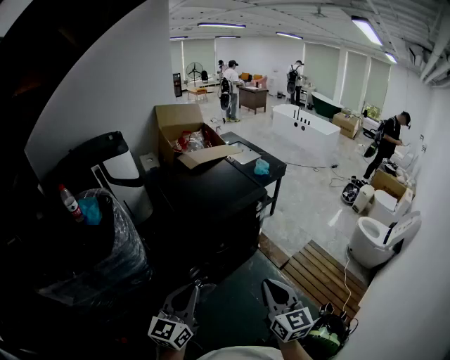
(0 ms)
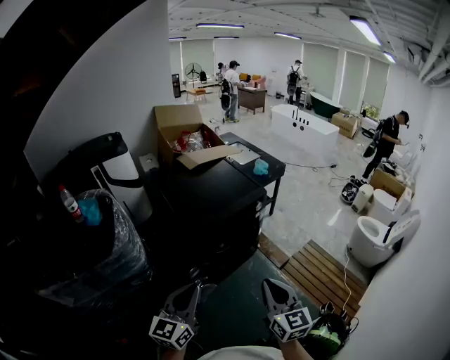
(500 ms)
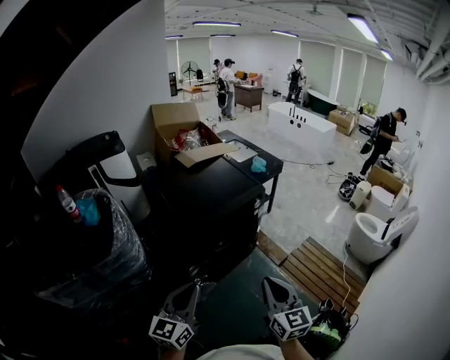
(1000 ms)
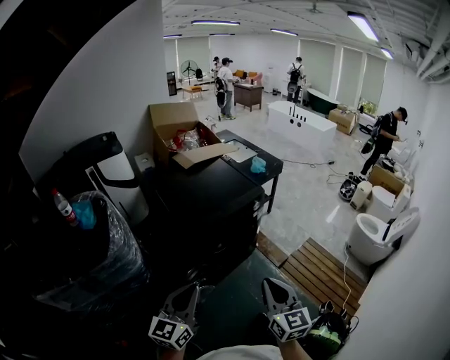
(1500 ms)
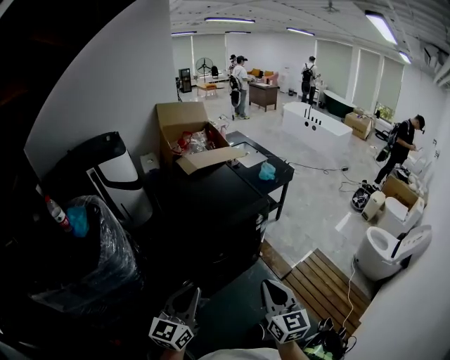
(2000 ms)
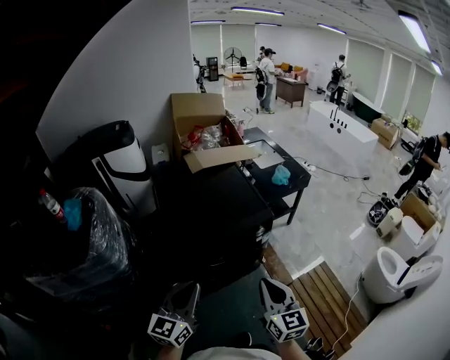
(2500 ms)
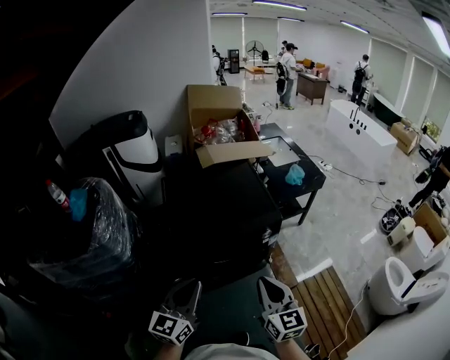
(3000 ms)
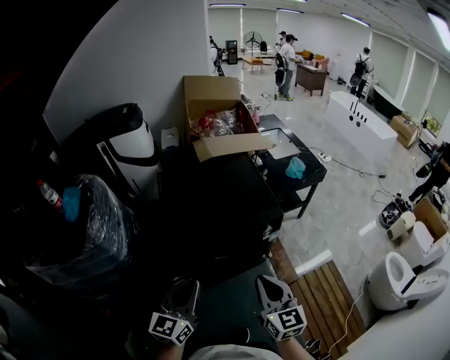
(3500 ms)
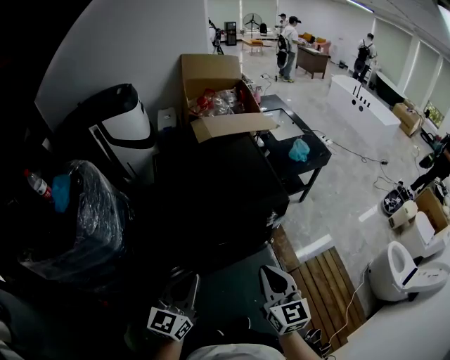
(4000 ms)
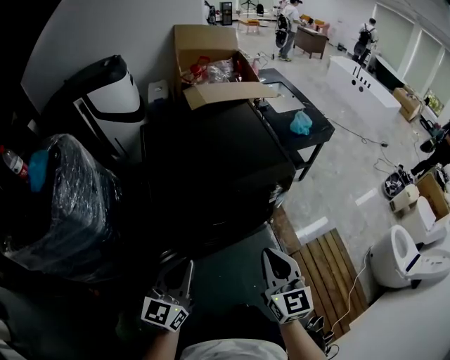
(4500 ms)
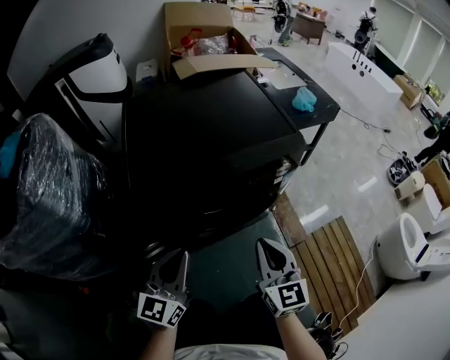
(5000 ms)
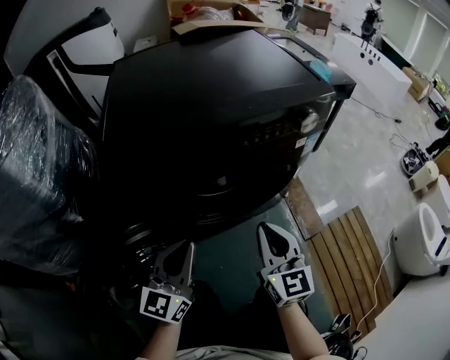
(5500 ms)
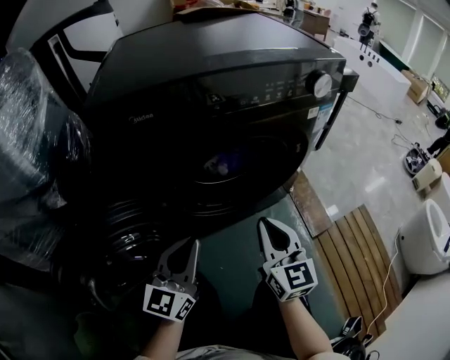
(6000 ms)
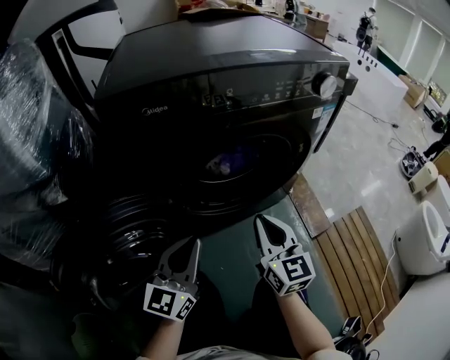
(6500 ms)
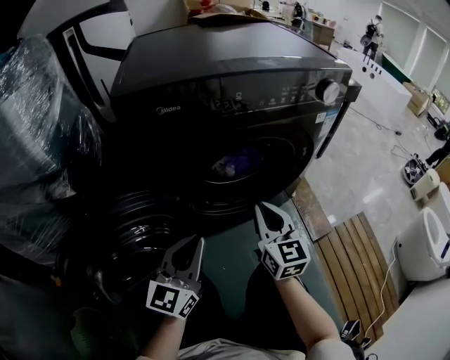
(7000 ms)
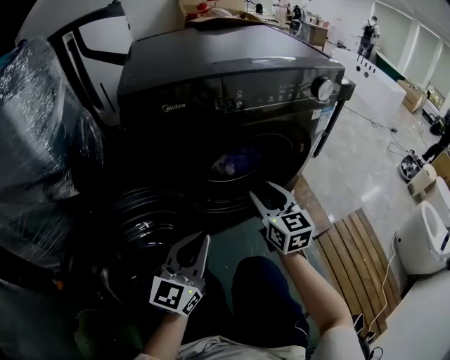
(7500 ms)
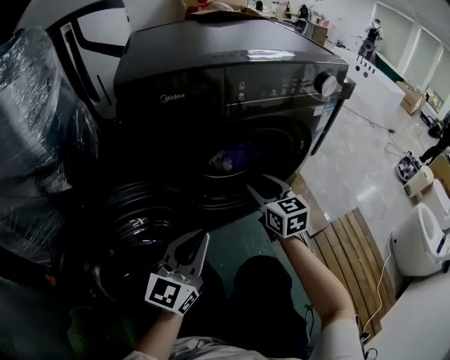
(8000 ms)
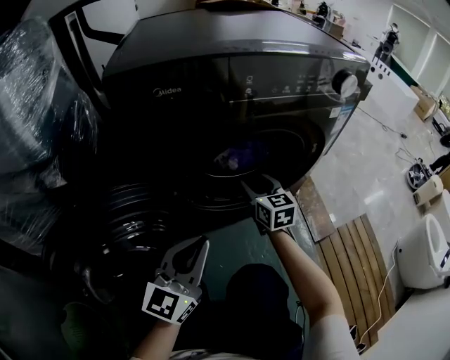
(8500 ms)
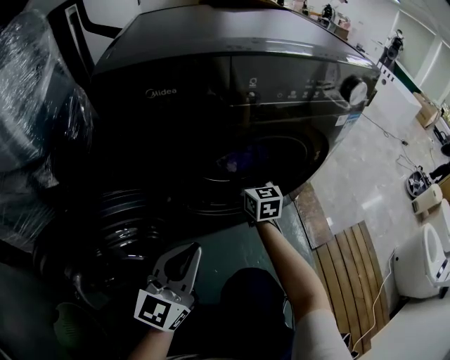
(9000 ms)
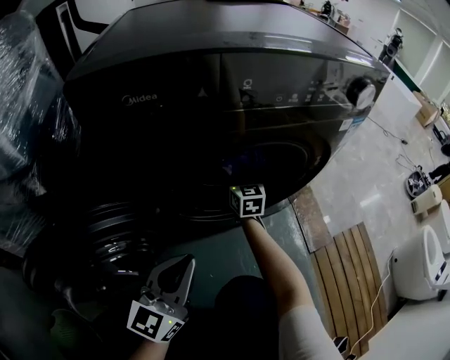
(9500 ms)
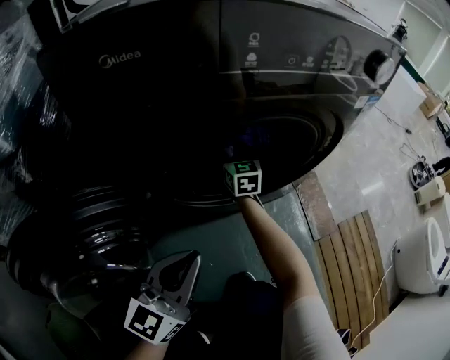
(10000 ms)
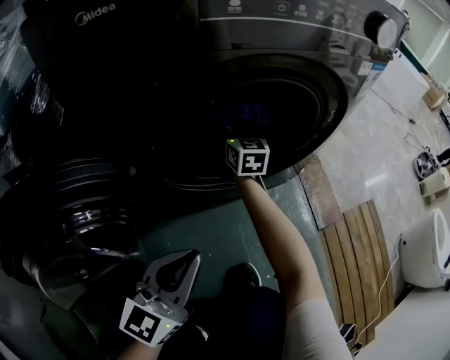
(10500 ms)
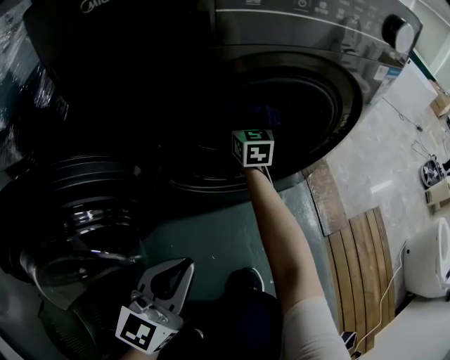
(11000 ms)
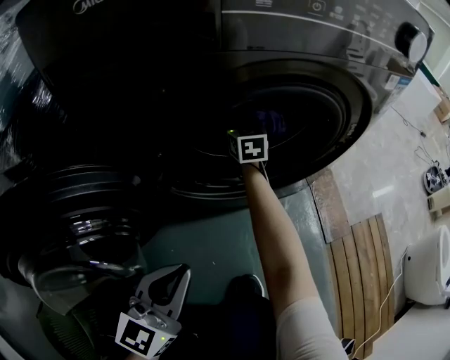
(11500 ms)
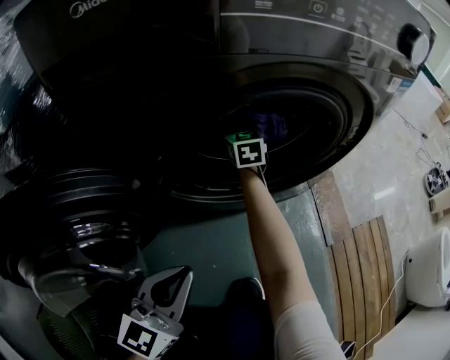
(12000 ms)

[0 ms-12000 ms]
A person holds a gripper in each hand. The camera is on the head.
0 ms to 2000 ms: The right gripper heads forward, covering some 10 cm; the left gripper shifts roughly 10 cm forward and to the right.
2000 ms to 4000 ms: The right gripper travels forward by some 20 cm, while the left gripper travels forward, to the right and downward by some 20 cm.
4000 ms to 6000 ms: The two grippers go approximately 50 cm downward.
6000 ms to 8000 ms: The right gripper heads forward, covering some 10 cm, and opens up.
8000 ms to 10000 ms: The right gripper is displaced forward and downward by some 25 cm. The left gripper travels downward by approximately 5 cm.
10000 ms to 12000 ms: The left gripper heads downward, covering roughly 5 cm. The right gripper shifts about 5 cm forward, and closes up.

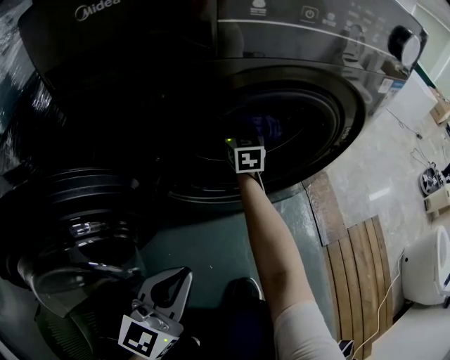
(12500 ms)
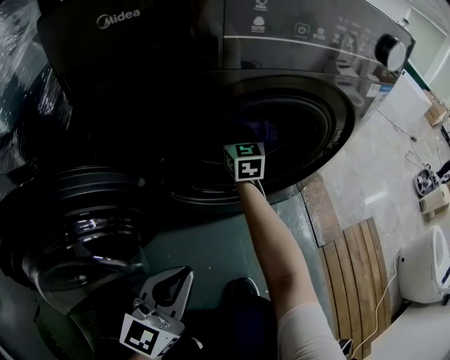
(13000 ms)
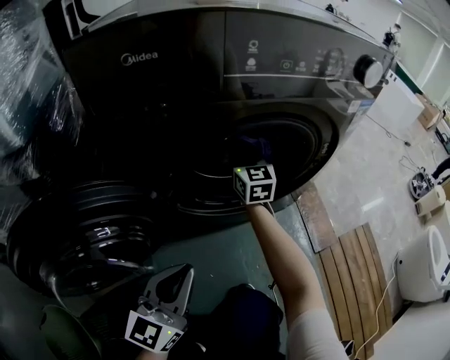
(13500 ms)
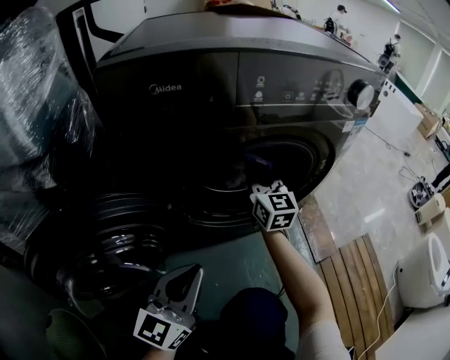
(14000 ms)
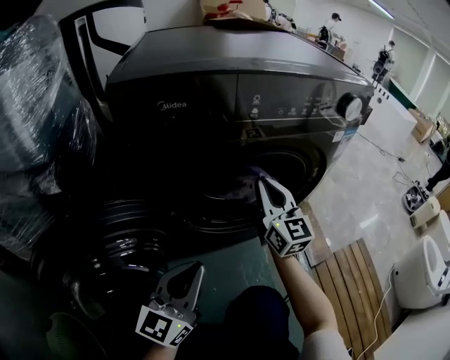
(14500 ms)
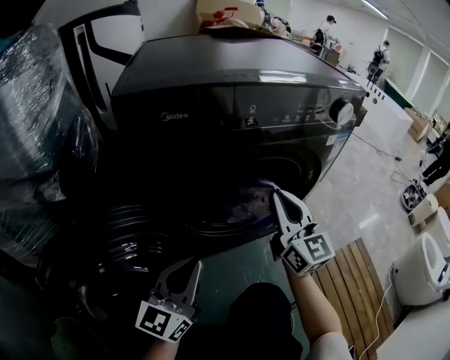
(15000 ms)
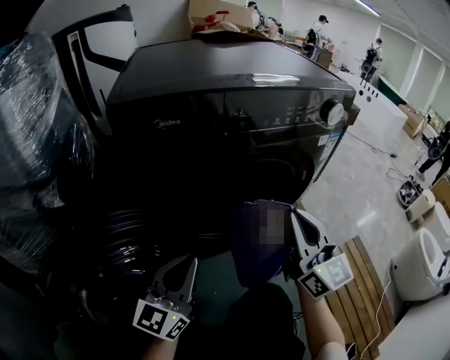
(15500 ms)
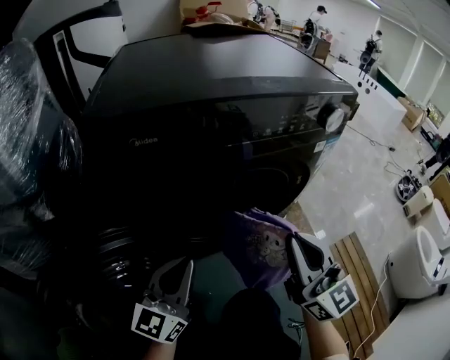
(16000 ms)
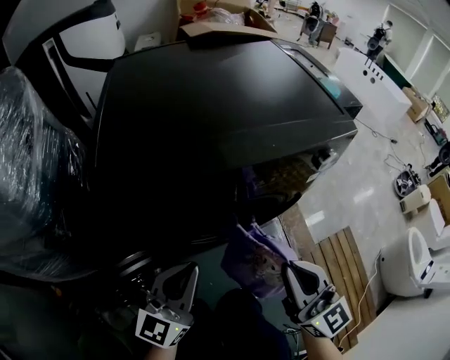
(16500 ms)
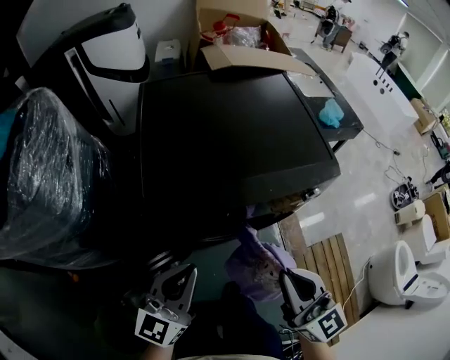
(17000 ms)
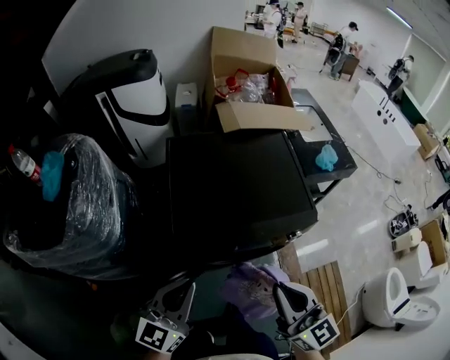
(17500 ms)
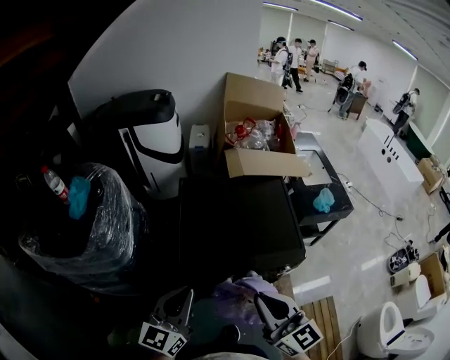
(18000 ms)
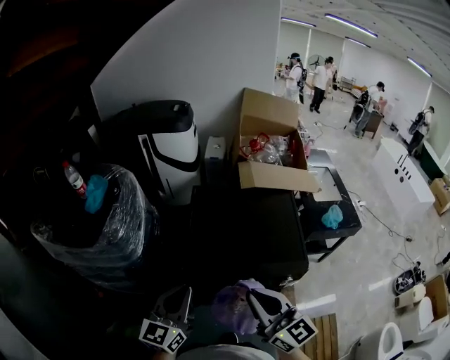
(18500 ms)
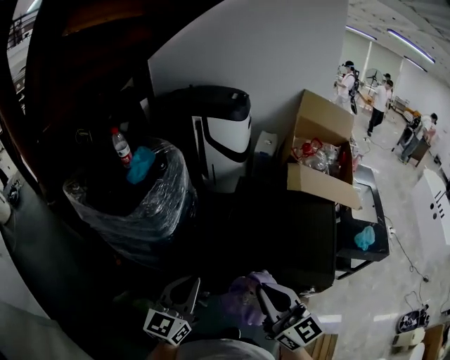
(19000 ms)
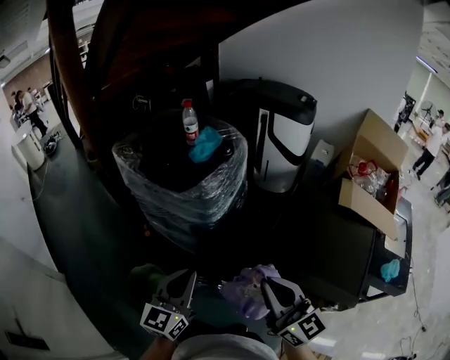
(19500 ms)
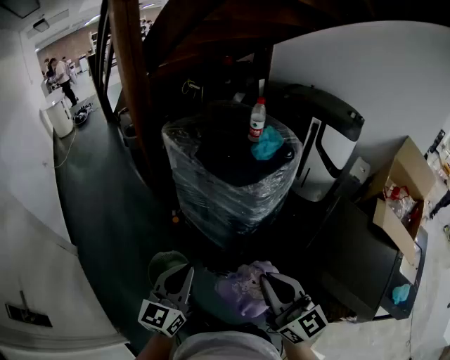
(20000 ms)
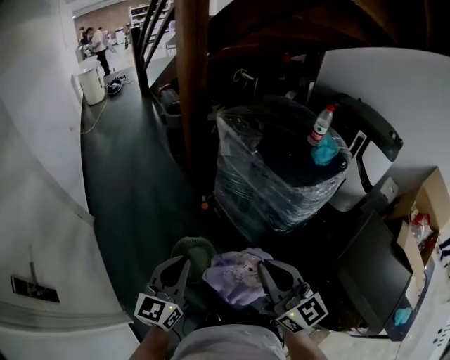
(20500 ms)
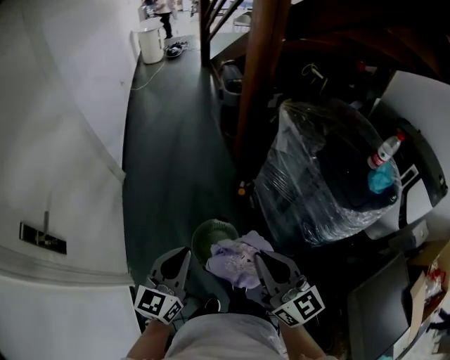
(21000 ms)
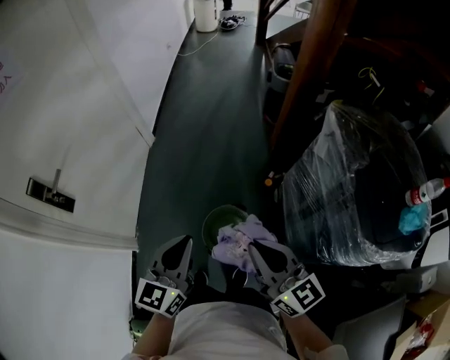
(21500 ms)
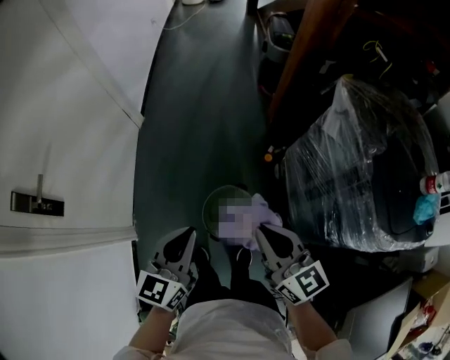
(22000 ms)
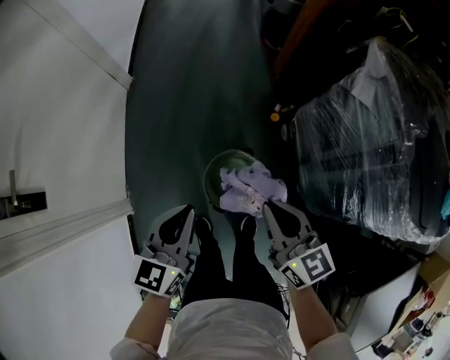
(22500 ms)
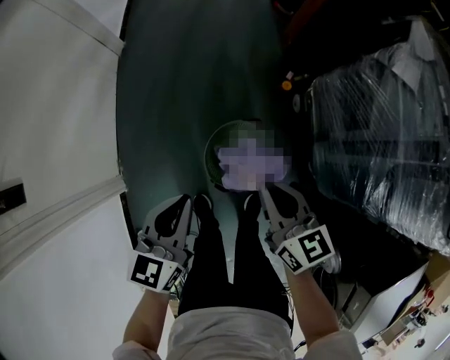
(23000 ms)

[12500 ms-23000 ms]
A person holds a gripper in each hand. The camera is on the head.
12500 ms to 14500 ms: The left gripper is displaced upward by approximately 10 cm. Meanwhile the right gripper goes some 30 cm backward, upward and to the right, and rotates about 20 degrees.
14500 ms to 16500 ms: The right gripper shifts roughly 25 cm upward, backward and to the right, while the left gripper travels upward by roughly 15 cm.
16500 ms to 19000 ms: Both grippers move upward, approximately 40 cm. The right gripper rotates some 40 degrees. Meanwhile the left gripper changes its angle by roughly 40 degrees.
19000 ms to 21000 ms: The pair of grippers is taken about 60 cm. The left gripper rotates approximately 60 degrees. The right gripper turns by approximately 60 degrees.
21000 ms to 23000 ms: The left gripper travels downward by some 30 cm, and swivels some 20 degrees, while the right gripper shifts roughly 40 cm downward and forward, and changes its angle by roughly 30 degrees.

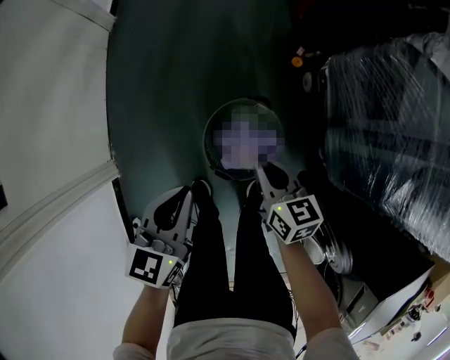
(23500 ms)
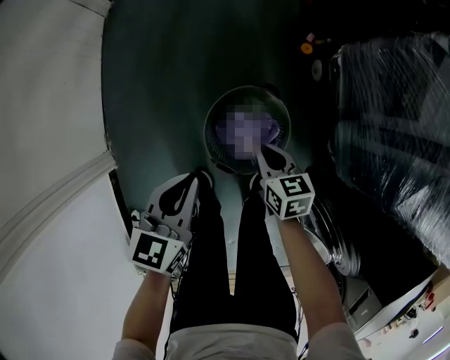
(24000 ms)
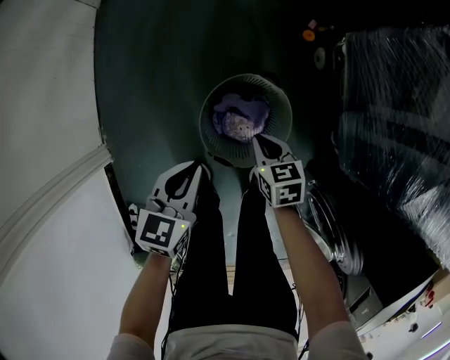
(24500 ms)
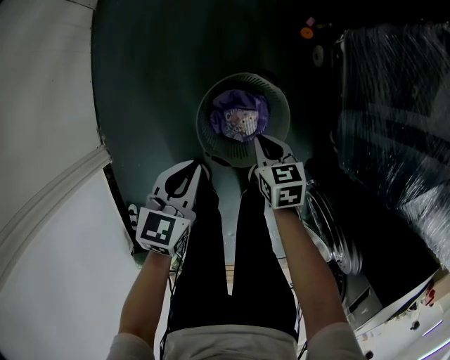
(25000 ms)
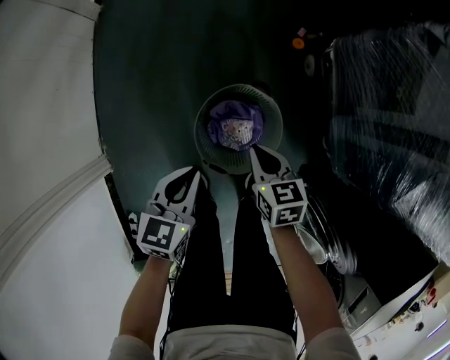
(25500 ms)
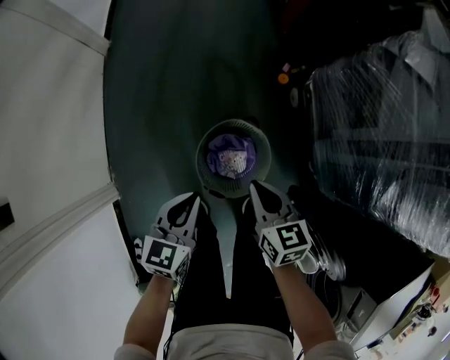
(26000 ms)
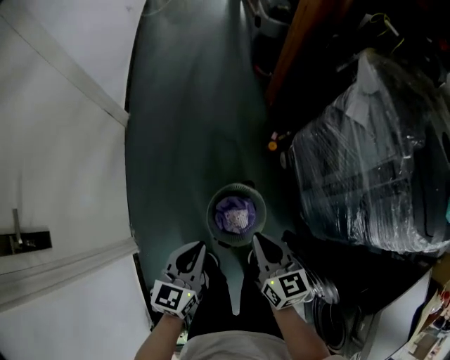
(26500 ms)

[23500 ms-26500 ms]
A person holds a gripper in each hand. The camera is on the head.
23500 ms to 25000 ms: Both grippers move downward, approximately 15 cm.
25000 ms to 26500 ms: Both grippers travel together upward, some 30 cm. The right gripper rotates approximately 30 degrees.

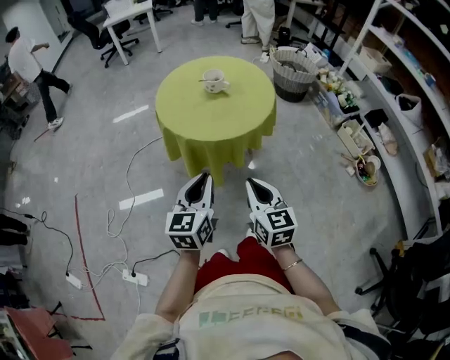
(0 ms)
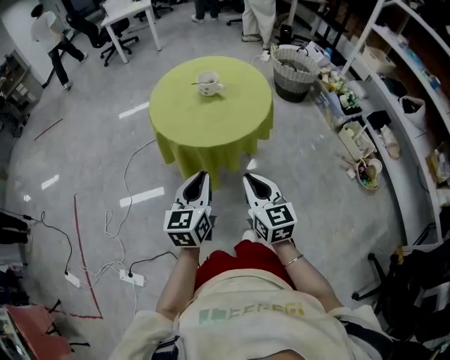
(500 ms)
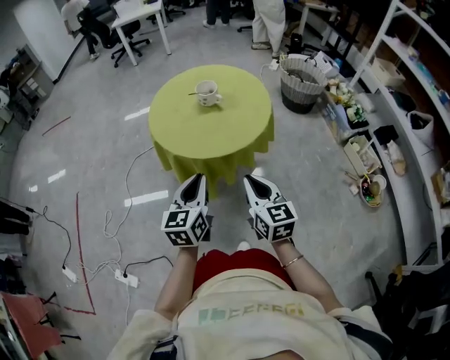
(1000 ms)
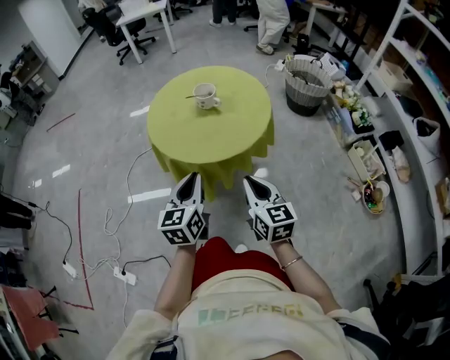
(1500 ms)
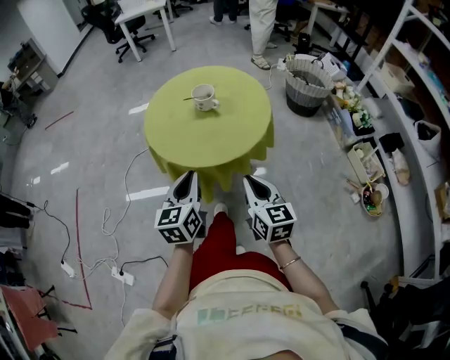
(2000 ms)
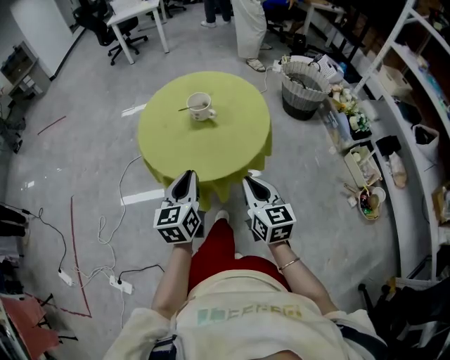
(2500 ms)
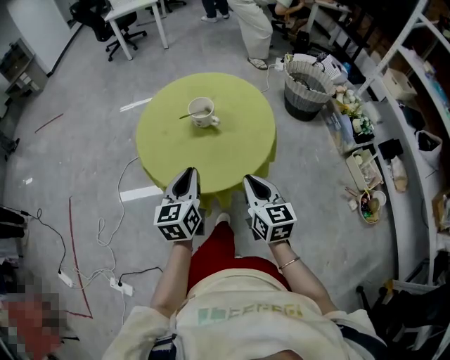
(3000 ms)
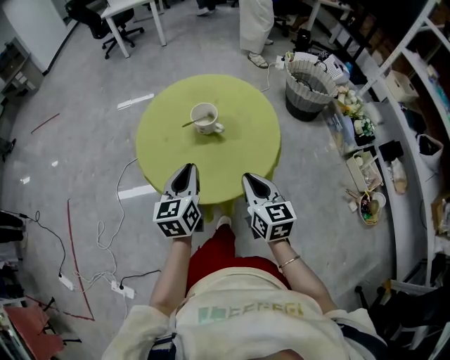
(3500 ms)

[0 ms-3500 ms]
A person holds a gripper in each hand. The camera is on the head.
0 ms to 2000 ms: Both grippers travel together forward and to the right, about 20 cm.
2000 ms to 3500 ms: Both grippers travel together forward, approximately 20 cm.
